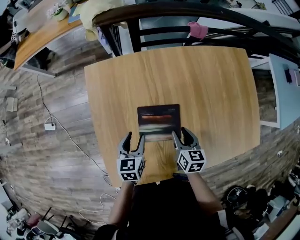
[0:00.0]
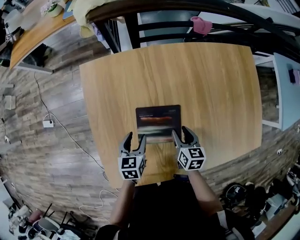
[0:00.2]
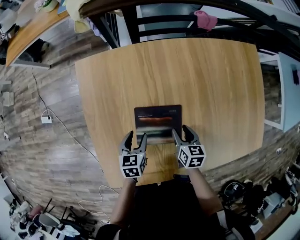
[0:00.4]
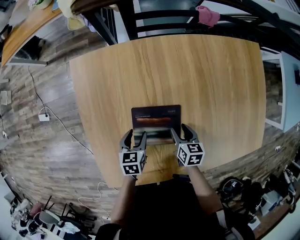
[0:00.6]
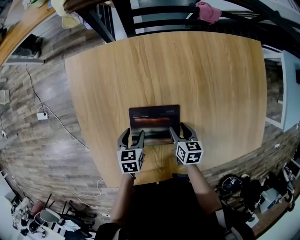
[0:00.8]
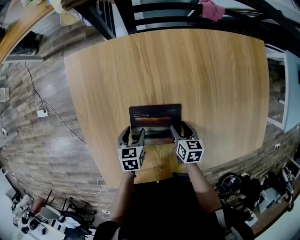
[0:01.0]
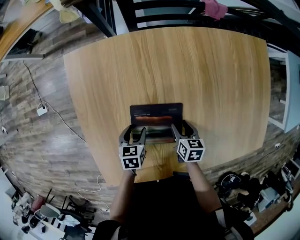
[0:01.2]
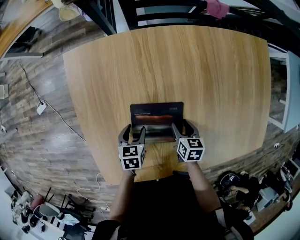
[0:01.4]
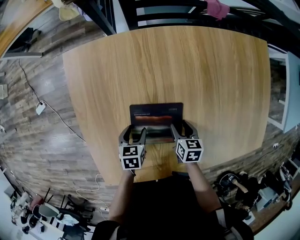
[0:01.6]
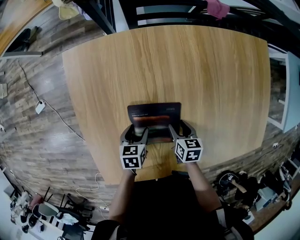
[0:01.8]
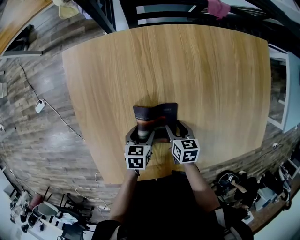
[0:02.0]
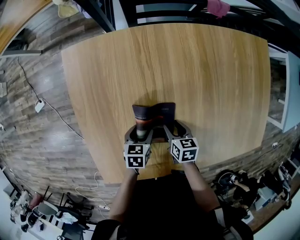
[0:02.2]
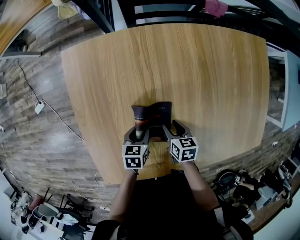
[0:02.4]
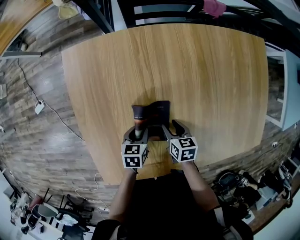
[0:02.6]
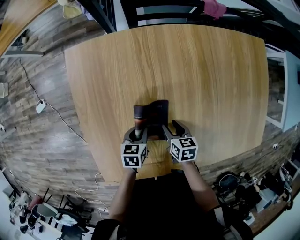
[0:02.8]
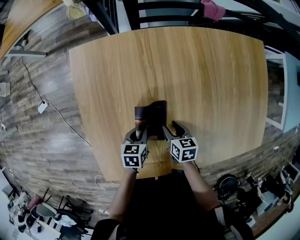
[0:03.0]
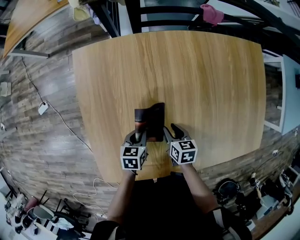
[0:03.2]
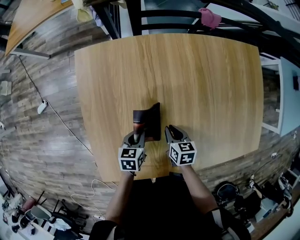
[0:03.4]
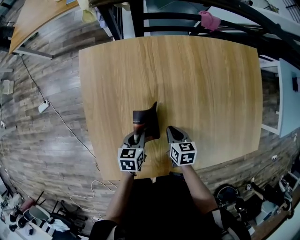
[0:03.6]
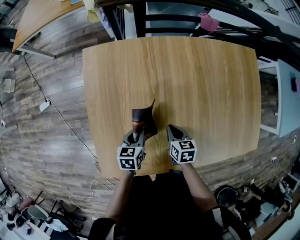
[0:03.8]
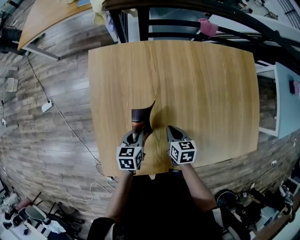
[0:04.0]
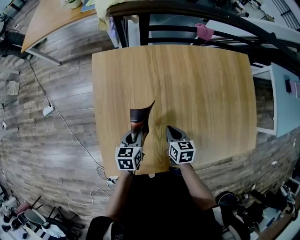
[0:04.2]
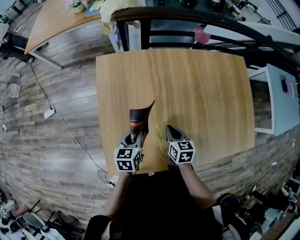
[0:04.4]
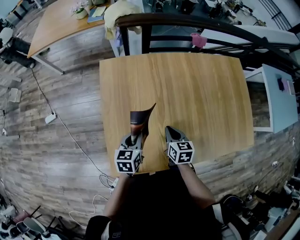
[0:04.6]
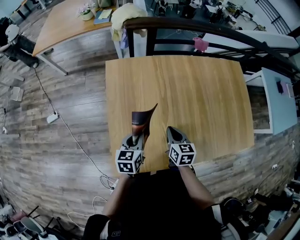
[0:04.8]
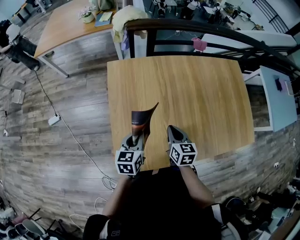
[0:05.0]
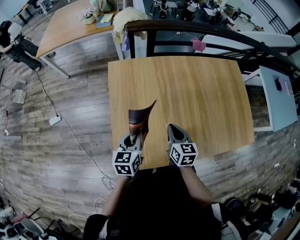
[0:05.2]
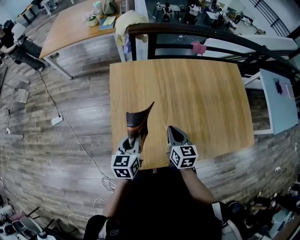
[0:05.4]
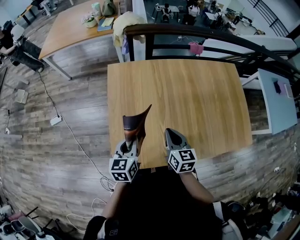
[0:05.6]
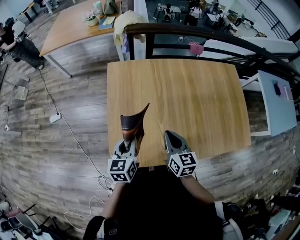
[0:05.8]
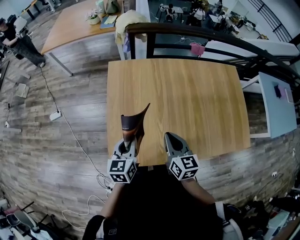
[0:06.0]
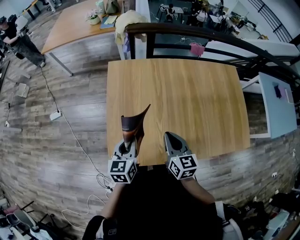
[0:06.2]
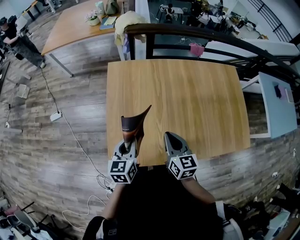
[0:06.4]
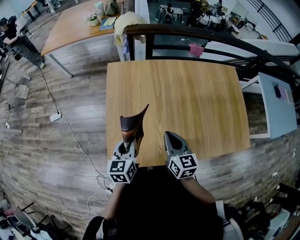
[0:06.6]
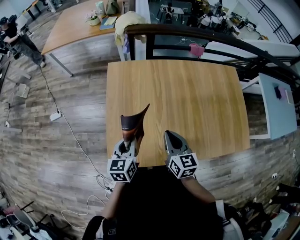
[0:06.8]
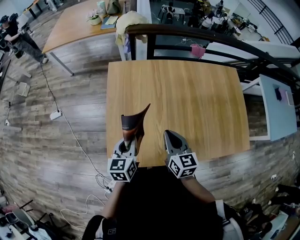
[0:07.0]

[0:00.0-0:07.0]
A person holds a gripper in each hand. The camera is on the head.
0:00.0 to 0:01.4: Both grippers travel together downward, approximately 15 cm. The right gripper turns by some 20 degrees. The left gripper turns by roughly 20 degrees.
0:01.4 to 0:02.8: The left gripper closes up.
0:02.8 to 0:04.2: The right gripper heads upward, covering about 10 cm, and closes its fingers, while the left gripper heads upward and to the left, covering about 15 cm.
0:04.2 to 0:05.6: Both grippers travel together upward and backward, approximately 20 cm. The right gripper rotates approximately 20 degrees.
0:05.6 to 0:07.0: The grippers stay close to where they were, moving slightly.

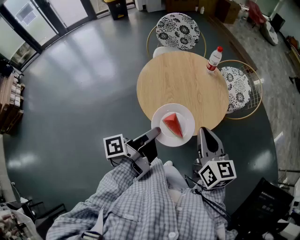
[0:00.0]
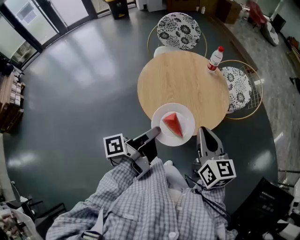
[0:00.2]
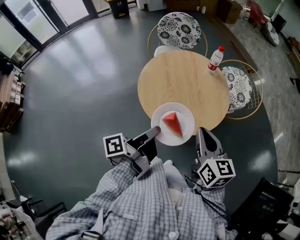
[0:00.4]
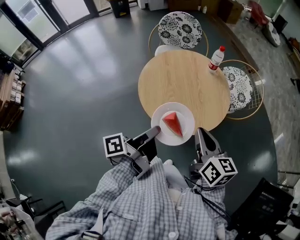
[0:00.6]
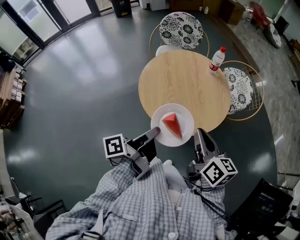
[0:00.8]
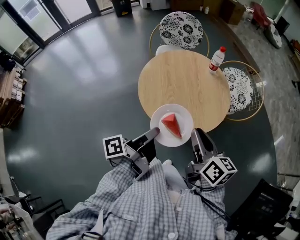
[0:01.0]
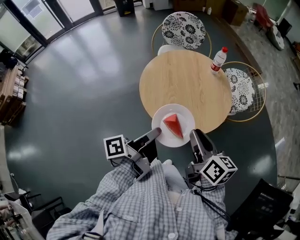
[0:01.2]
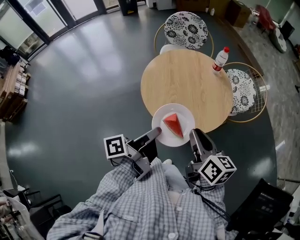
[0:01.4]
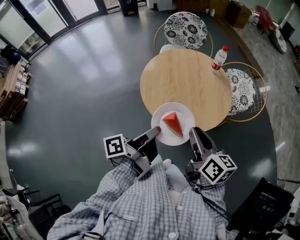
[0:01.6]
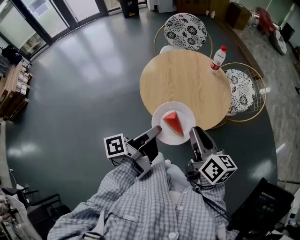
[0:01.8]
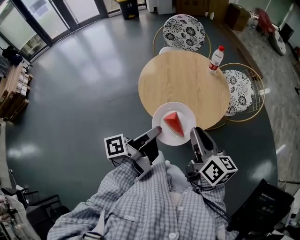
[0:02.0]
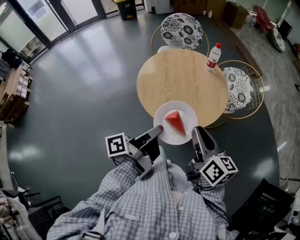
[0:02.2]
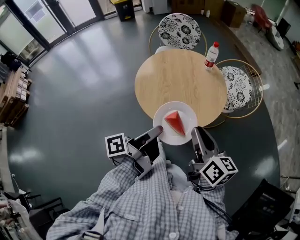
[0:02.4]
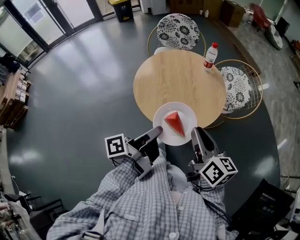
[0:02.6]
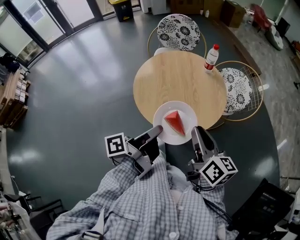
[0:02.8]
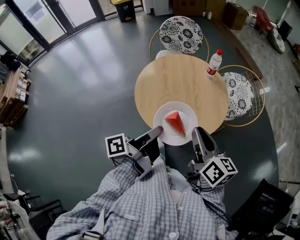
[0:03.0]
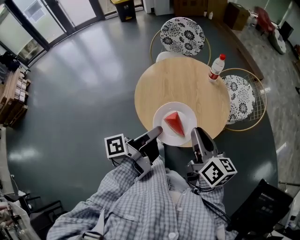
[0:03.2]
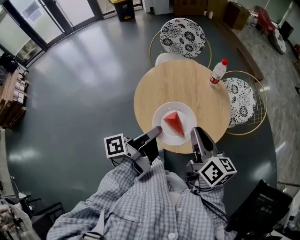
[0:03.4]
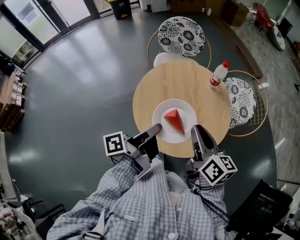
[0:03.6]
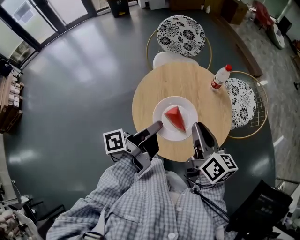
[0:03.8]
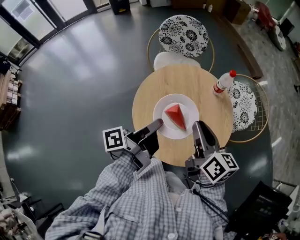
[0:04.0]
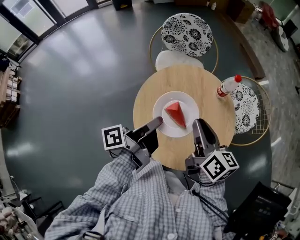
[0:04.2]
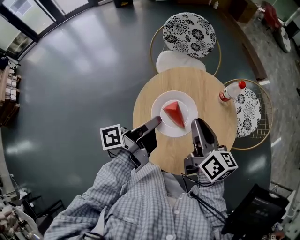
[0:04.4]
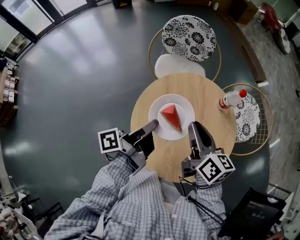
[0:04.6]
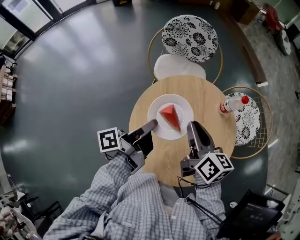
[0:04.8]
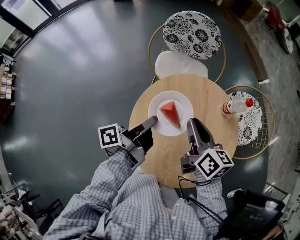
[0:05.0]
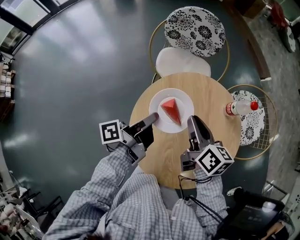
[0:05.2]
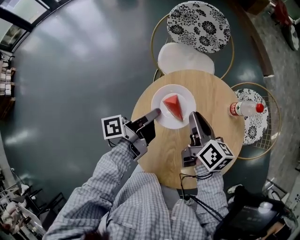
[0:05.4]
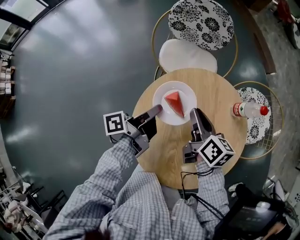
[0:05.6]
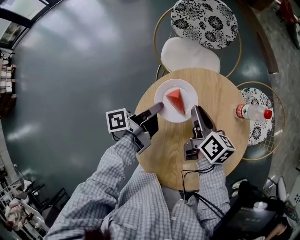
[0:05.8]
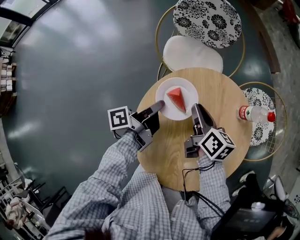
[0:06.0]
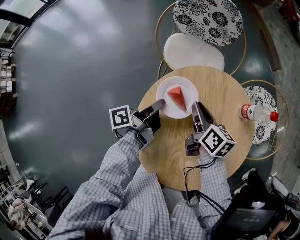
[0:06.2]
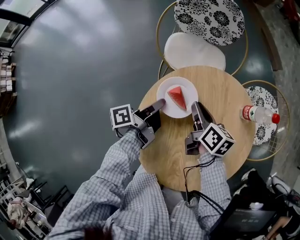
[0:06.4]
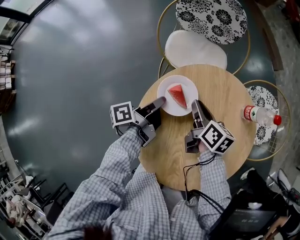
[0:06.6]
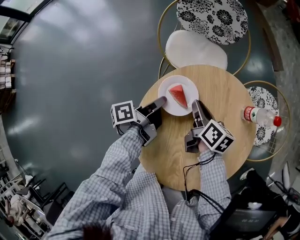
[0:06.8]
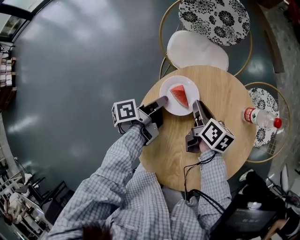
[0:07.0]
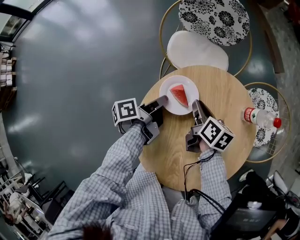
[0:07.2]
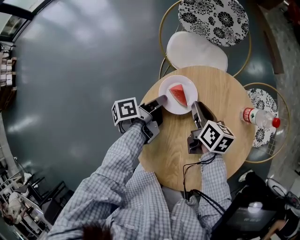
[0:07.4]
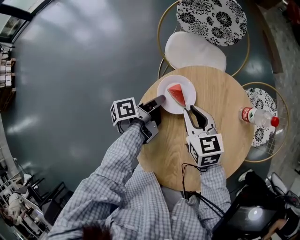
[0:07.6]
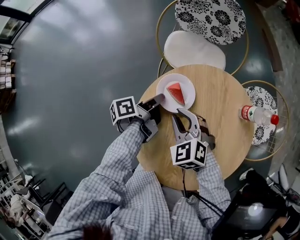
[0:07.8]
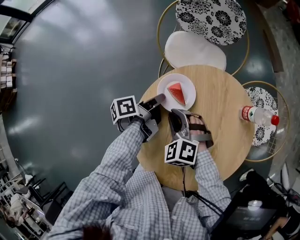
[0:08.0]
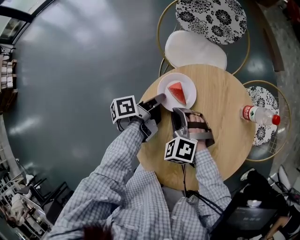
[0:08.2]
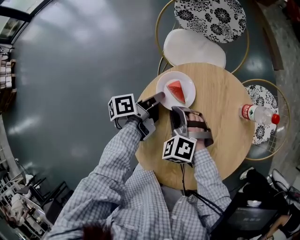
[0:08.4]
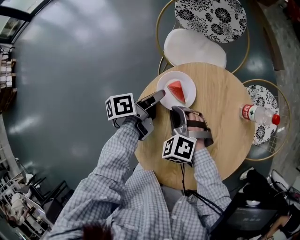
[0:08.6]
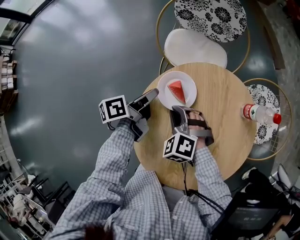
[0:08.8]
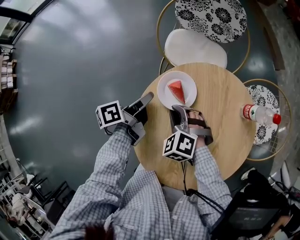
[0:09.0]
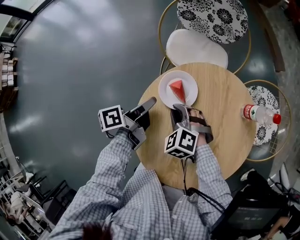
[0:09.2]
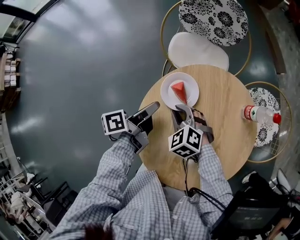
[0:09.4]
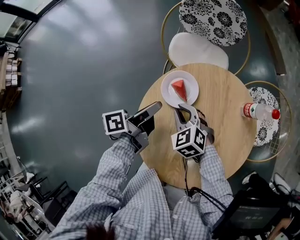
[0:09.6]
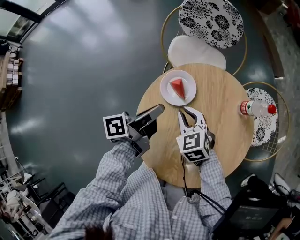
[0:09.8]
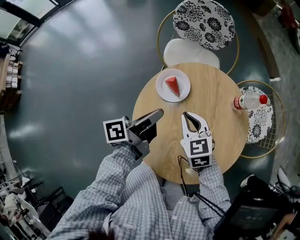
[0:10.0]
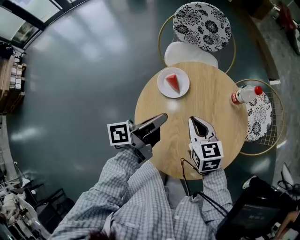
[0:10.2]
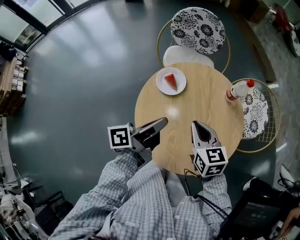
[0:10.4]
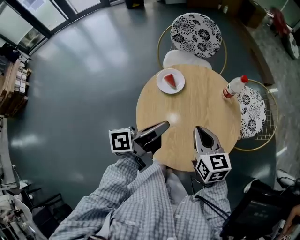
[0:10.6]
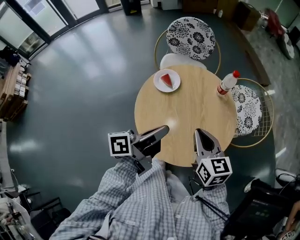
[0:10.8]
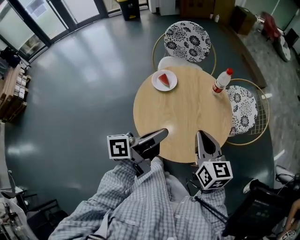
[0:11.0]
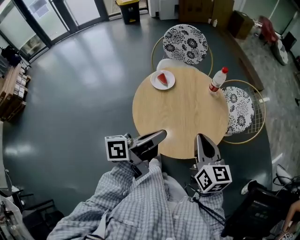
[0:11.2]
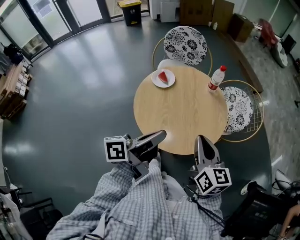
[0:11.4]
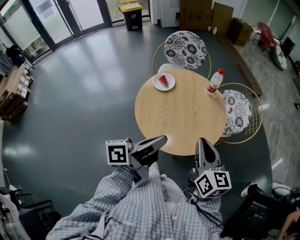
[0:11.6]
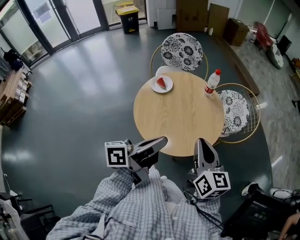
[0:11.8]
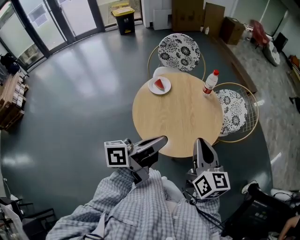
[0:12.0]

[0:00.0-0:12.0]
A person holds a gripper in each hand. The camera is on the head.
0:00.0 to 0:01.6: The right gripper turns by roughly 20 degrees.
0:03.0 to 0:04.4: The right gripper changes place by about 25 cm.
0:04.4 to 0:06.0: The right gripper is displaced downward by approximately 15 cm.
0:06.0 to 0:07.6: The right gripper rotates around the line of its fingers by about 40 degrees, counterclockwise from behind.
0:07.6 to 0:09.0: The right gripper shifts by approximately 10 cm, and twists about 50 degrees counterclockwise, seen from behind.
0:09.0 to 0:10.4: The right gripper changes place by approximately 20 cm, and rolls clockwise, seen from behind, by about 60 degrees.
0:10.4 to 0:12.0: The right gripper moves about 25 cm, and changes its angle by about 30 degrees.

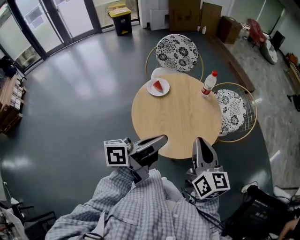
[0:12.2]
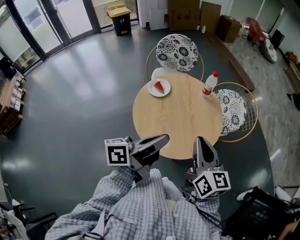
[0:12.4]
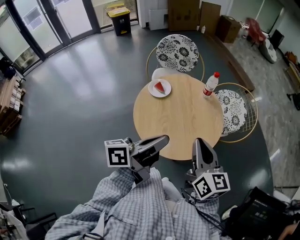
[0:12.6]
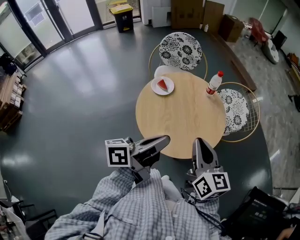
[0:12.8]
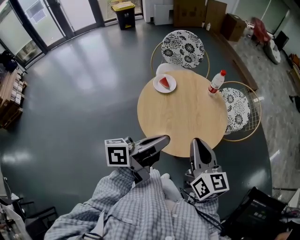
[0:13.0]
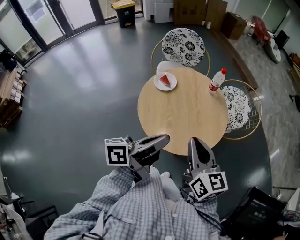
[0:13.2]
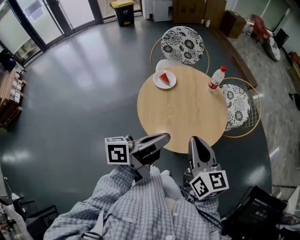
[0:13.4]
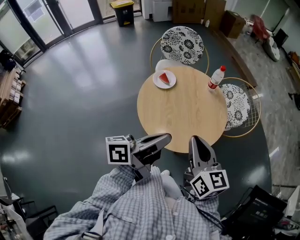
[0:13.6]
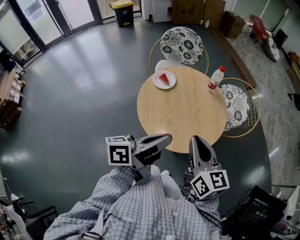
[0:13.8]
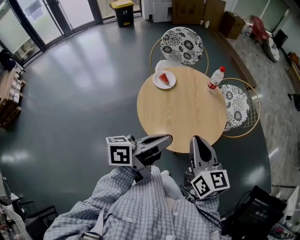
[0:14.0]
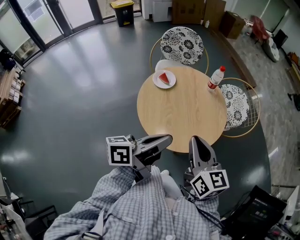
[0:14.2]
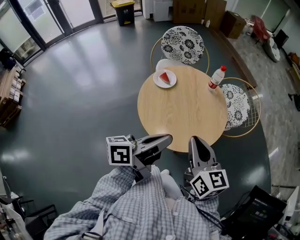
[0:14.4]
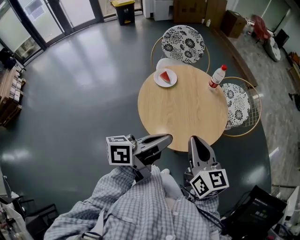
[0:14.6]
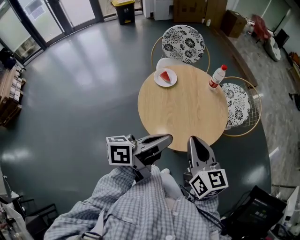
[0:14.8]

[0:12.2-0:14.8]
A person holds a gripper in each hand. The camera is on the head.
0:12.2 to 0:13.4: The right gripper ends up approximately 5 cm from where it was.

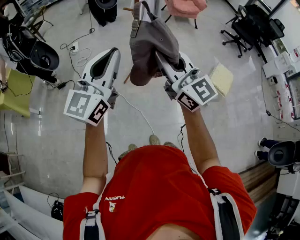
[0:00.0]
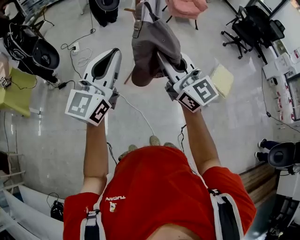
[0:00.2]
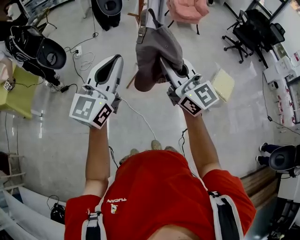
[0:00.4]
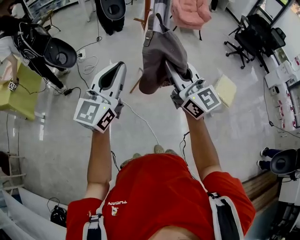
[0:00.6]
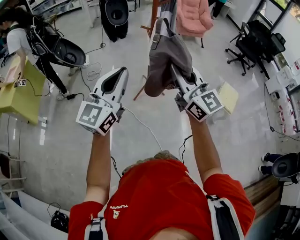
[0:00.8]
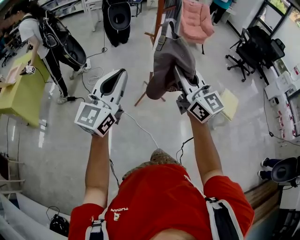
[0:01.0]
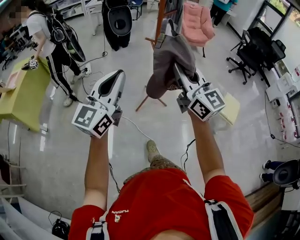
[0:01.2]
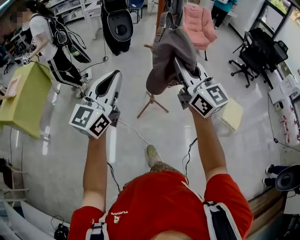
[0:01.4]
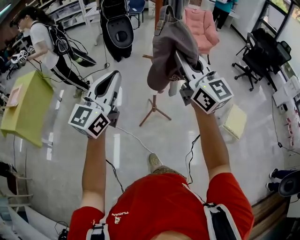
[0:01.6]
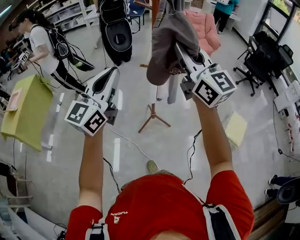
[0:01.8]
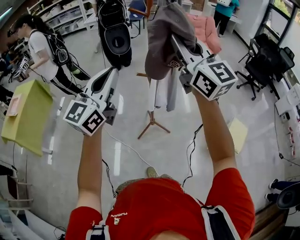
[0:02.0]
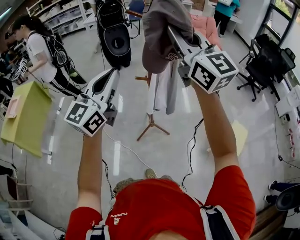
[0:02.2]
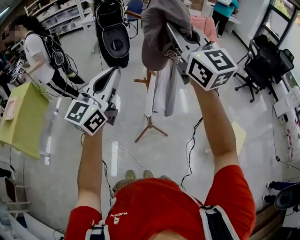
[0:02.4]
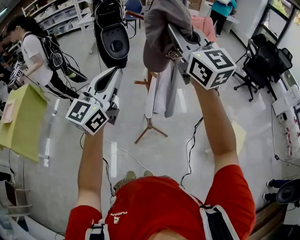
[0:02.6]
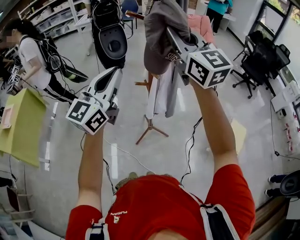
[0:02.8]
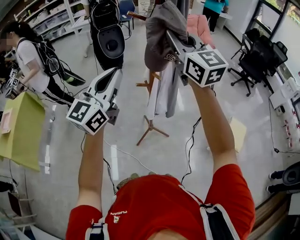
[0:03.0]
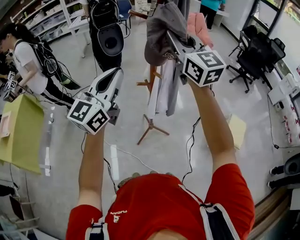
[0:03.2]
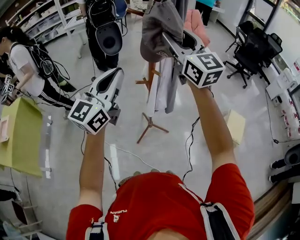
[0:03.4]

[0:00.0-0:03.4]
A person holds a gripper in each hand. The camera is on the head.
0:00.0 to 0:01.6: The left gripper is displaced forward by some 20 cm; the right gripper goes some 25 cm forward and upward.
0:01.6 to 0:03.4: Both grippers move forward, approximately 25 cm. The right gripper opens up.
